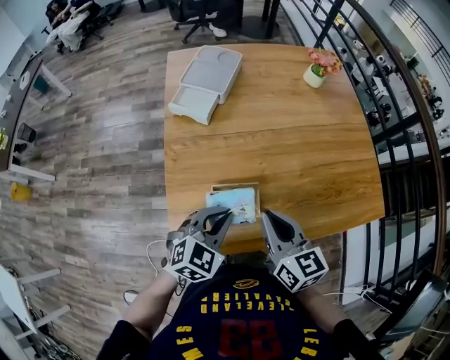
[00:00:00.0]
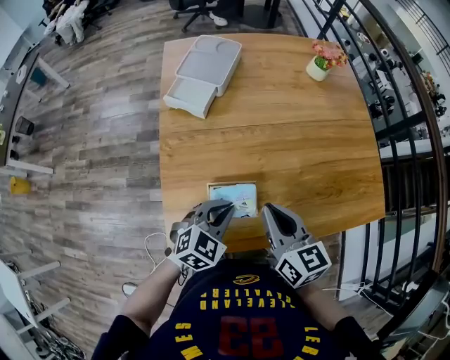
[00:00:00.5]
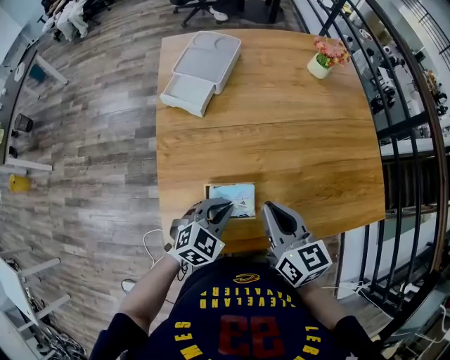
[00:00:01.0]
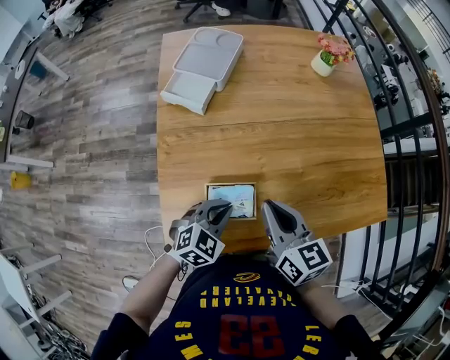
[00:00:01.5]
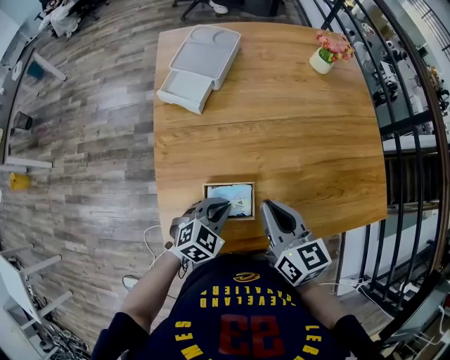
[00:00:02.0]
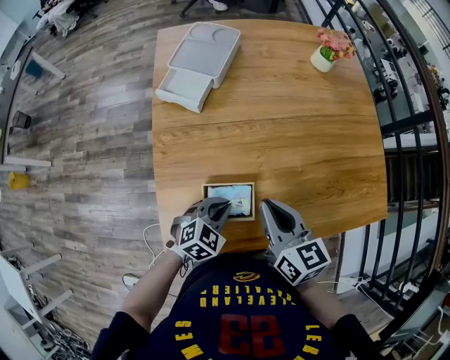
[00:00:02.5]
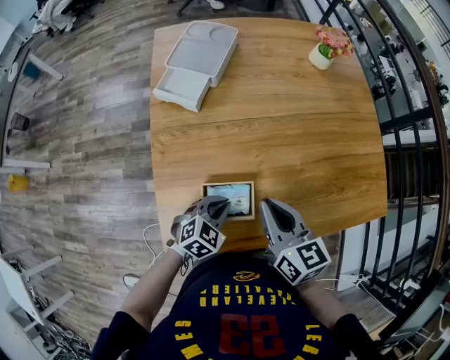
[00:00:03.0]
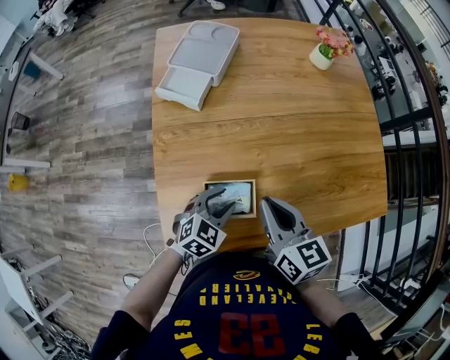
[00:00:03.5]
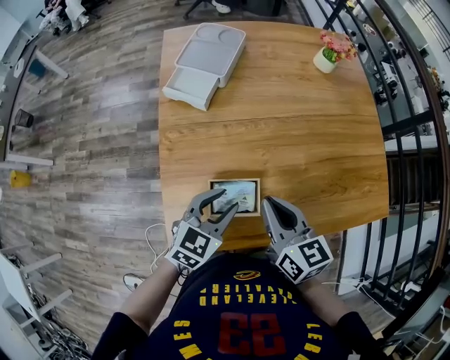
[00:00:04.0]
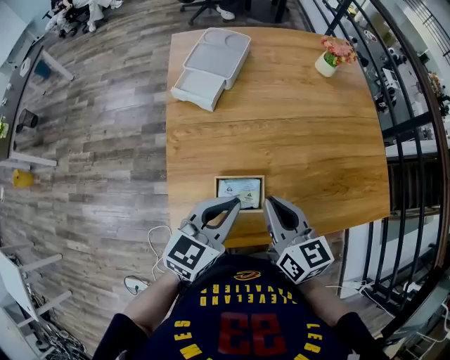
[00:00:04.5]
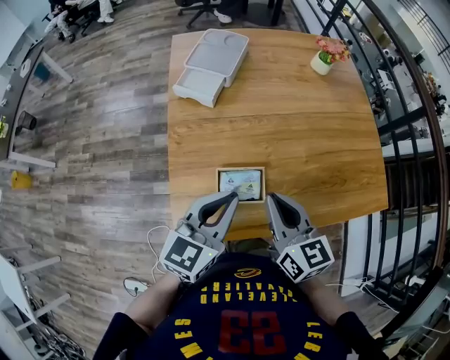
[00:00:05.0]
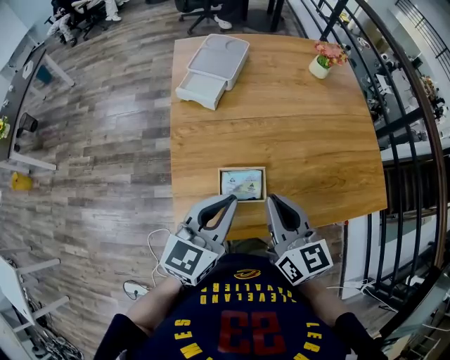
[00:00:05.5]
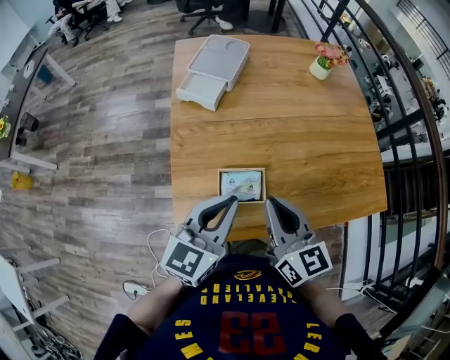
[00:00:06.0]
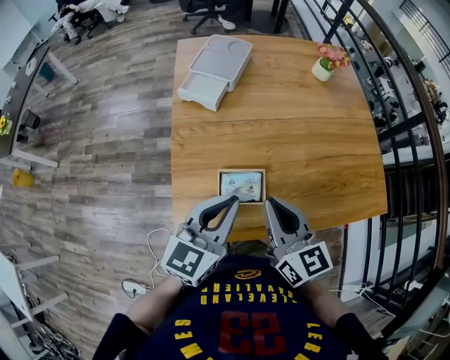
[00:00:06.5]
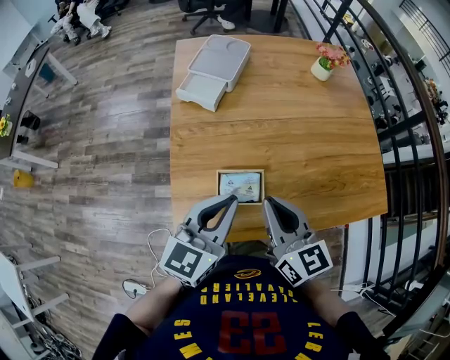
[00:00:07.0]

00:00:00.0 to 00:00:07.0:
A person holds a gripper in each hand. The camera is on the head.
00:00:00.0 to 00:00:02.0: The left gripper is displaced downward by about 10 cm. The right gripper moves roughly 5 cm.
00:00:02.0 to 00:00:03.5: The left gripper opens up.
00:00:03.5 to 00:00:05.0: The left gripper shifts about 20 cm upward, turns by some 40 degrees, and closes its fingers. The right gripper ends up about 5 cm from where it was.
00:00:05.0 to 00:00:07.0: The grippers make only small movements.

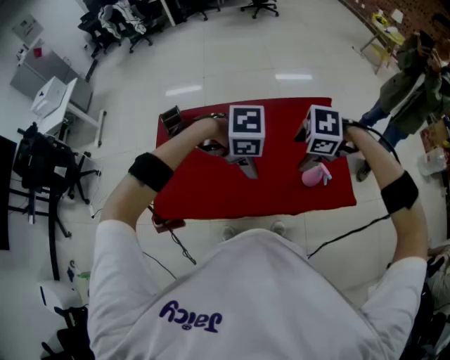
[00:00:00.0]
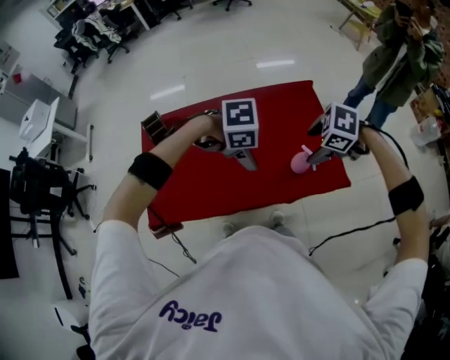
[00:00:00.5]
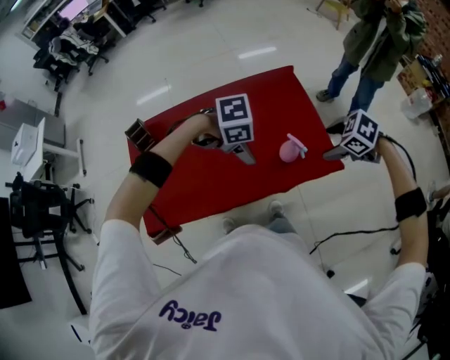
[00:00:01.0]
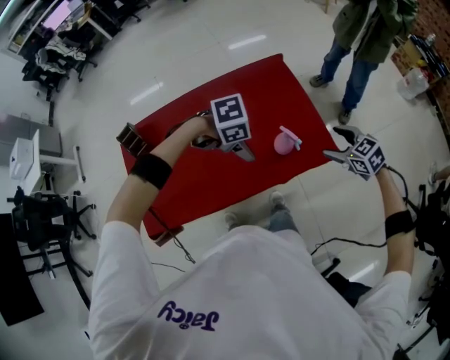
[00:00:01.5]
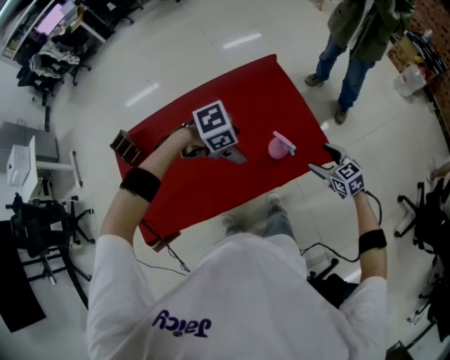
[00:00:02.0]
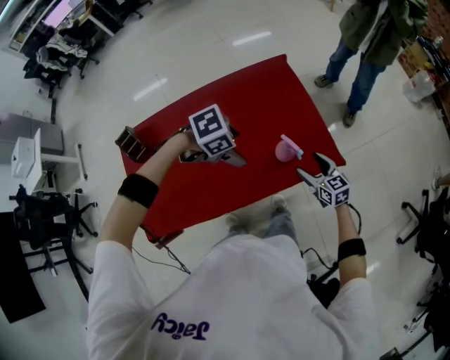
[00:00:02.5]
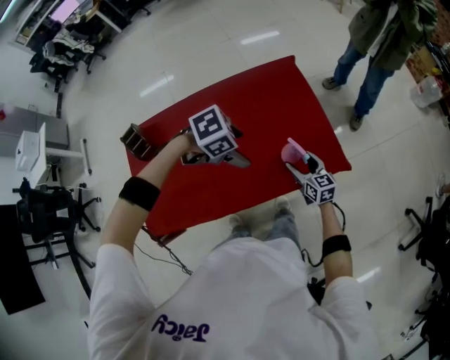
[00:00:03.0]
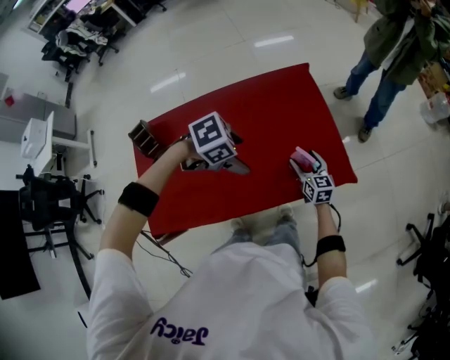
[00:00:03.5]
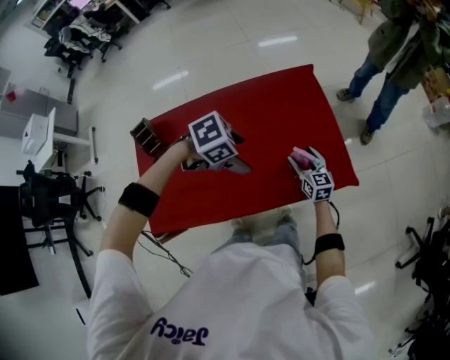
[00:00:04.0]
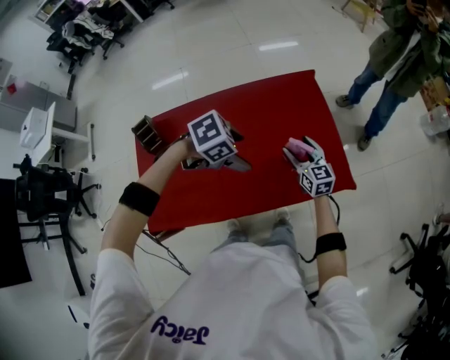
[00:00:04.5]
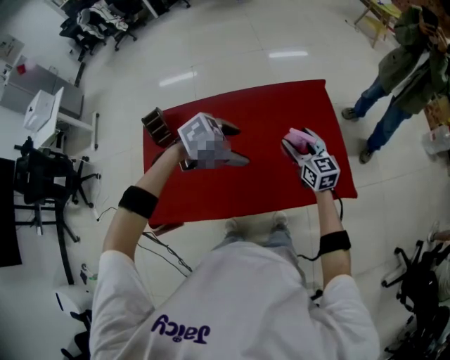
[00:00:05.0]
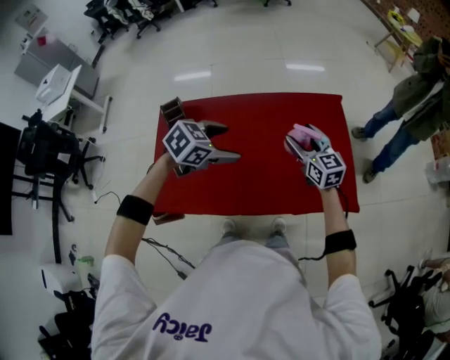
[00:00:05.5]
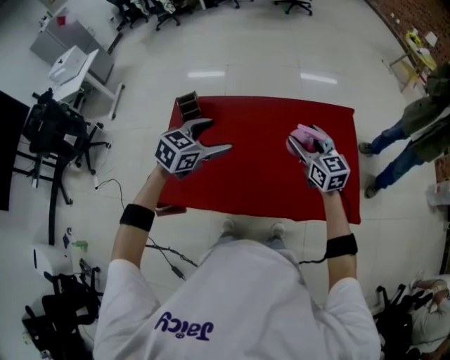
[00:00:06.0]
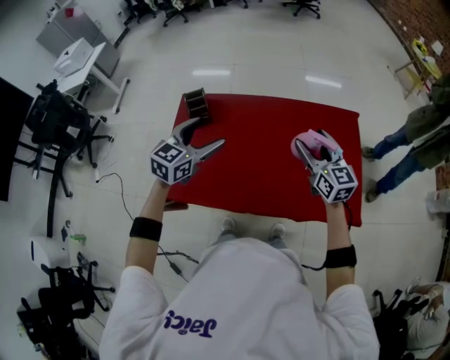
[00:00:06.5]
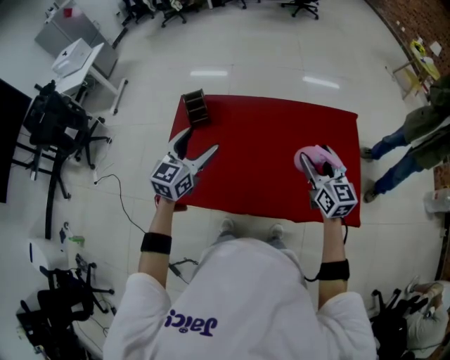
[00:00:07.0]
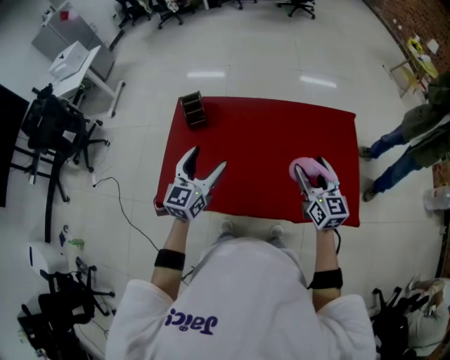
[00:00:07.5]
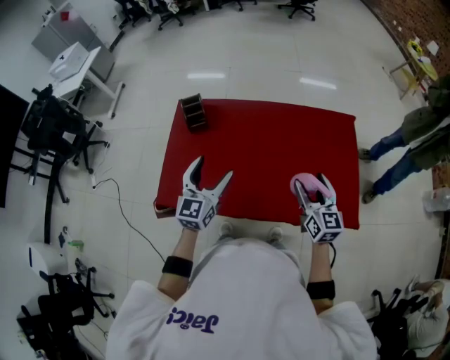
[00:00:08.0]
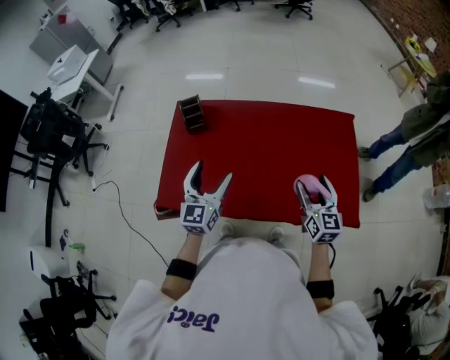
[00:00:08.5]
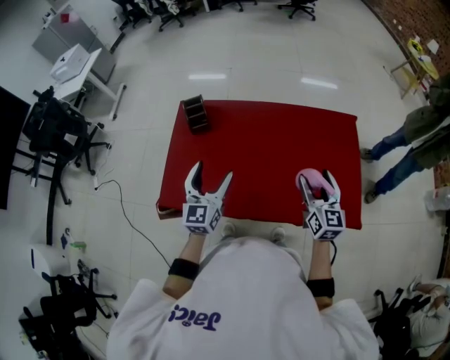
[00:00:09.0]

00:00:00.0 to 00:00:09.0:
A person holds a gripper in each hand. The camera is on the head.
00:00:00.0 to 00:00:02.0: The right gripper shifts by roughly 30 cm, and angles its fingers upward, by approximately 40 degrees. Meanwhile the left gripper ends up approximately 15 cm from where it was.
00:00:02.0 to 00:00:04.5: The right gripper reaches some 10 cm downward, then returns, and changes its angle by about 20 degrees; the left gripper shifts by approximately 5 cm.
00:00:04.5 to 00:00:07.0: The right gripper shifts about 15 cm upward; the left gripper ends up approximately 30 cm from where it was, and tilts its fingers approximately 50 degrees upward.
00:00:07.0 to 00:00:09.0: The right gripper shifts by roughly 5 cm. The left gripper travels backward by roughly 5 cm.

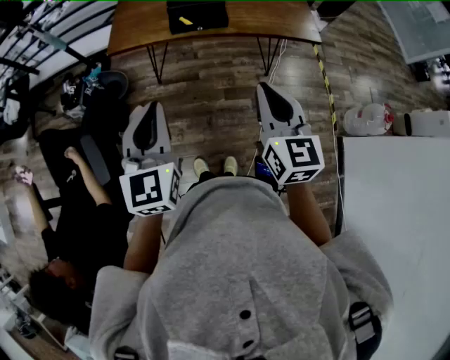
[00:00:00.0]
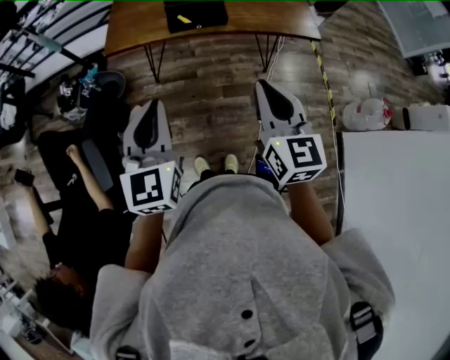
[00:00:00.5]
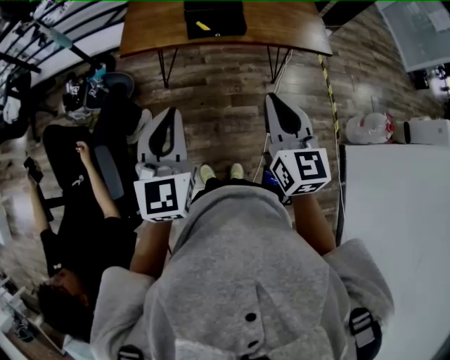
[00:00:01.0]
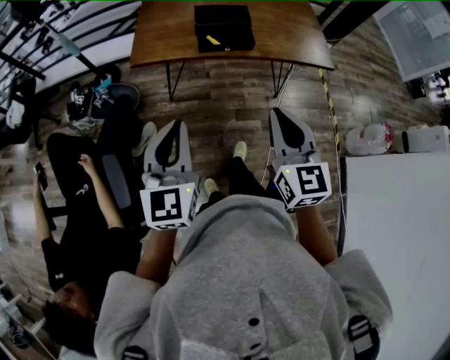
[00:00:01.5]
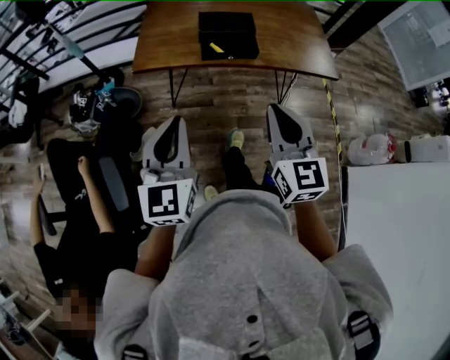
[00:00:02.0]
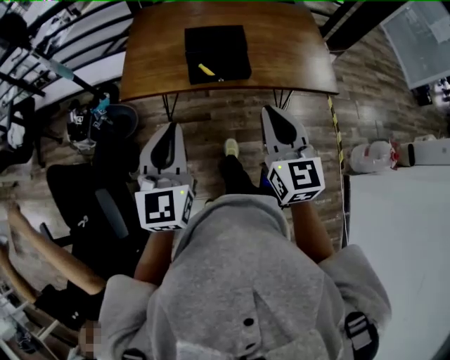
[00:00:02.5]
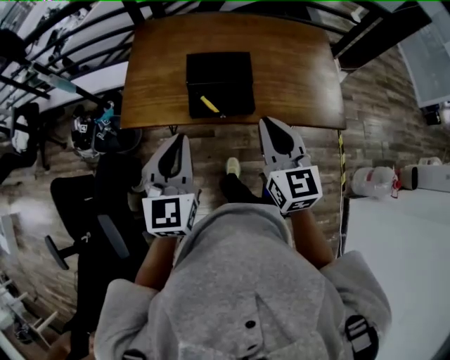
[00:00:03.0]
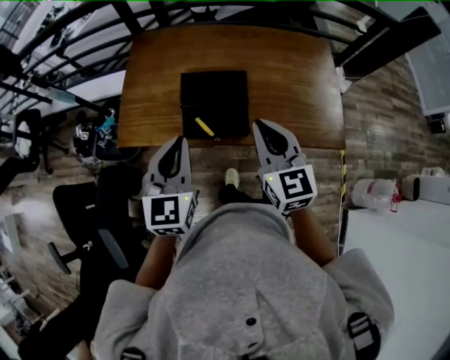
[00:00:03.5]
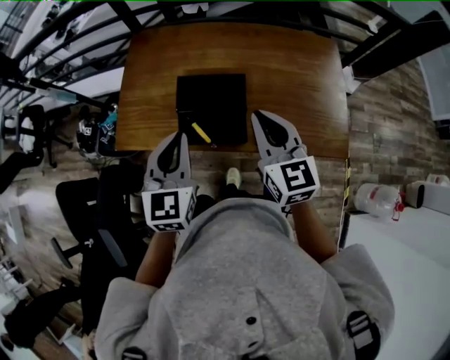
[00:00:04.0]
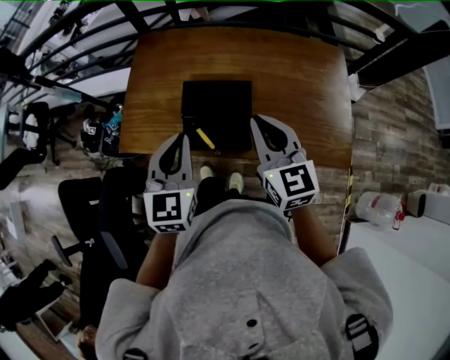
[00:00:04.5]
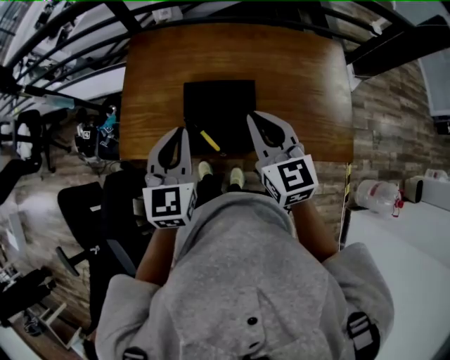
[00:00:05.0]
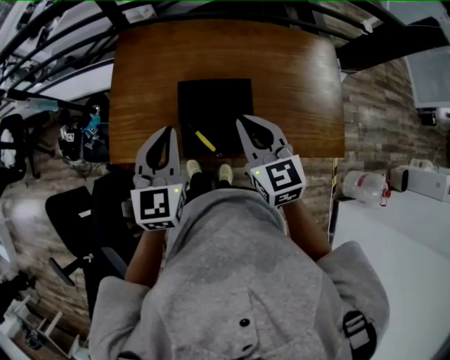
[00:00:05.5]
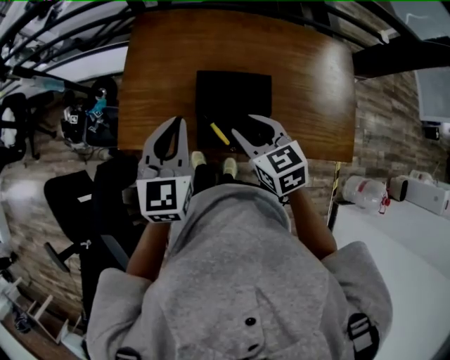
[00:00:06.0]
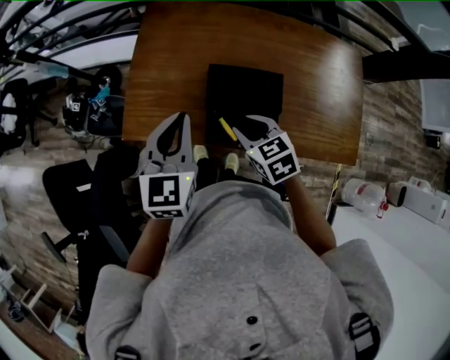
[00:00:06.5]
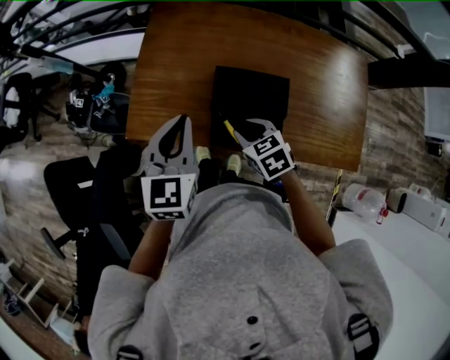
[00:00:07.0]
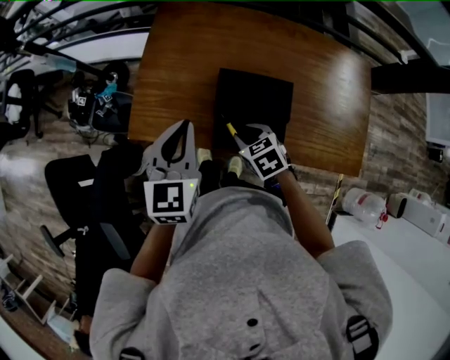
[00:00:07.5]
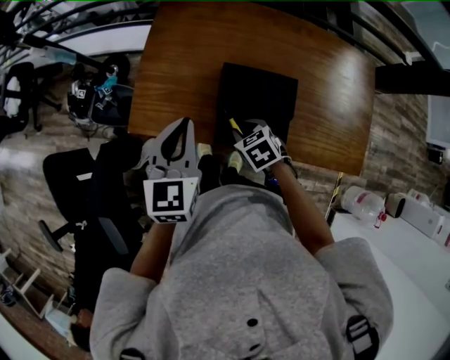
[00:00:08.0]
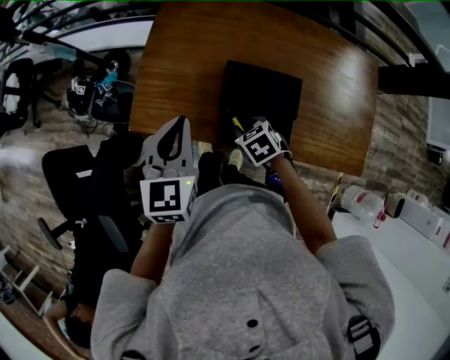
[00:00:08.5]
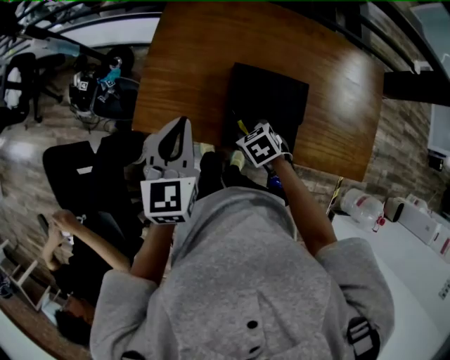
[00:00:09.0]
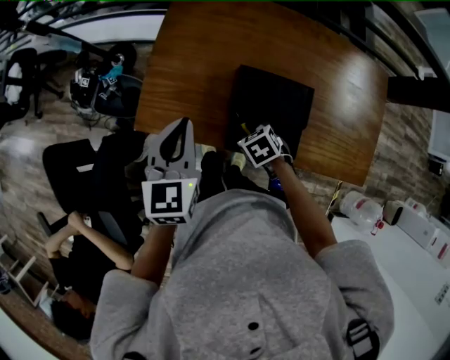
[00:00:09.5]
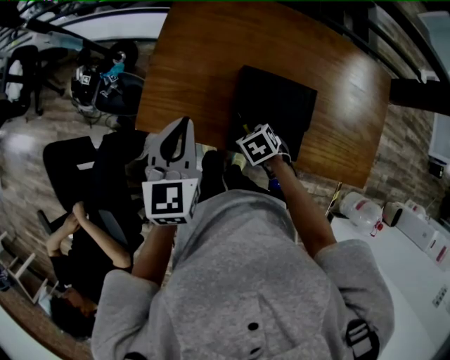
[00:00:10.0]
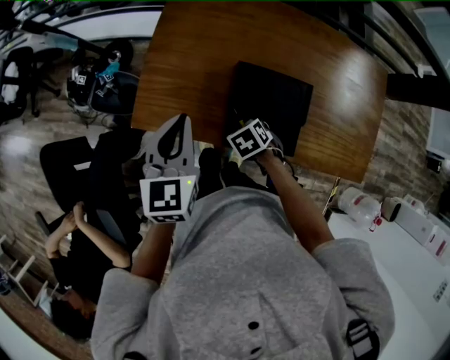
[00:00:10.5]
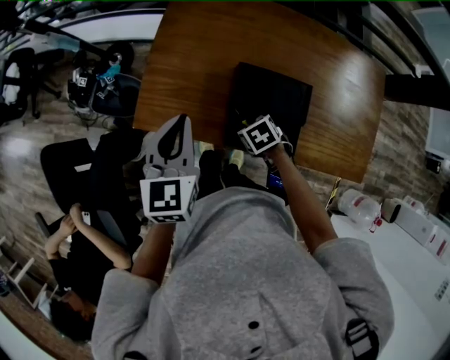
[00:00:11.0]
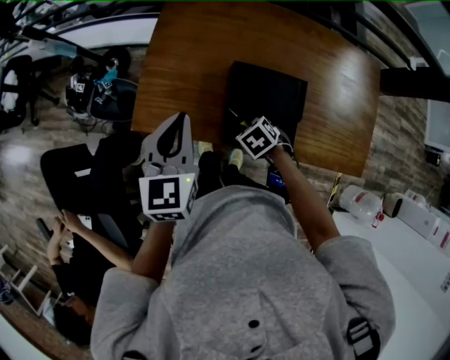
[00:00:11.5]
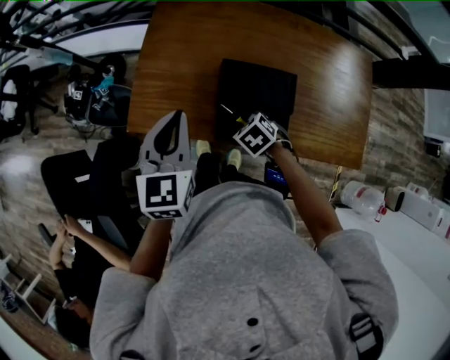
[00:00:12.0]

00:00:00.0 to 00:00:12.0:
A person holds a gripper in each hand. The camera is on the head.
00:00:00.0 to 00:00:02.0: The grippers both shift to the left by roughly 10 cm.
00:00:02.0 to 00:00:04.0: Both grippers are carried forward, approximately 50 cm.
00:00:04.0 to 00:00:06.0: The right gripper goes some 20 cm to the left, downward and forward, rotates approximately 30 degrees, and opens its fingers, while the left gripper goes some 15 cm to the left and forward.
00:00:06.0 to 00:00:08.0: The left gripper shifts by some 5 cm. The right gripper travels downward by approximately 15 cm, and changes its angle by about 30 degrees.
00:00:08.0 to 00:00:10.0: The right gripper is displaced downward by approximately 5 cm. The left gripper shifts by roughly 5 cm.
00:00:10.0 to 00:00:12.0: The grippers move only a little.
